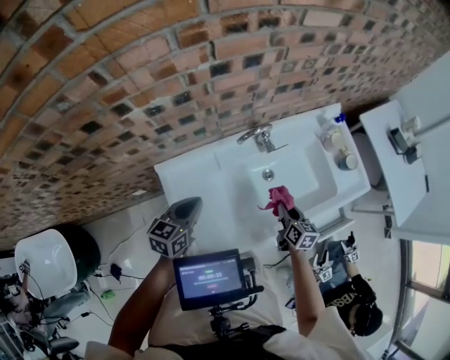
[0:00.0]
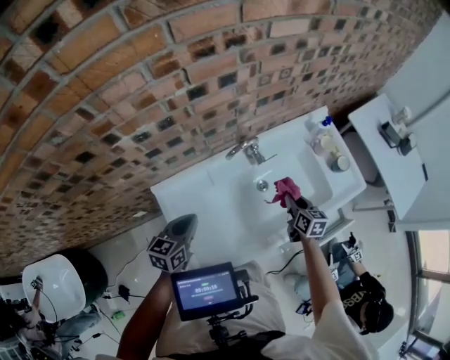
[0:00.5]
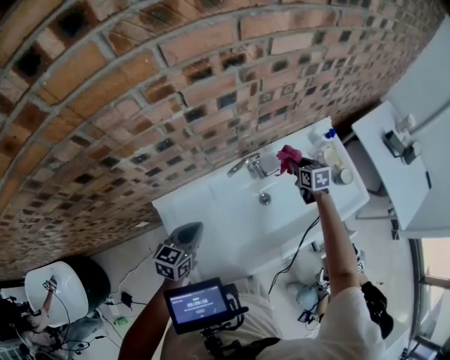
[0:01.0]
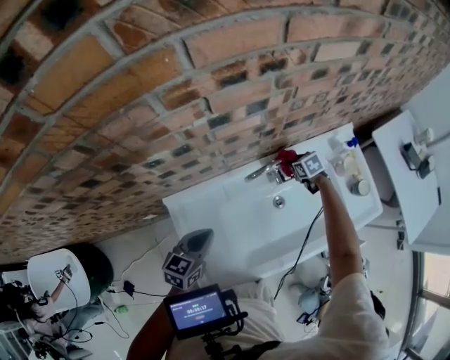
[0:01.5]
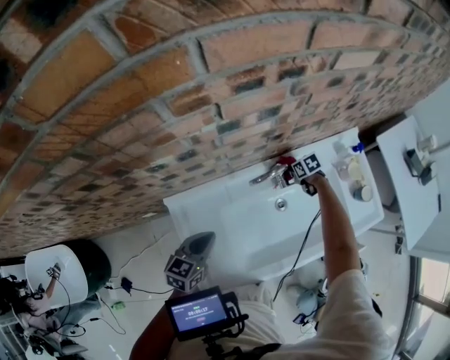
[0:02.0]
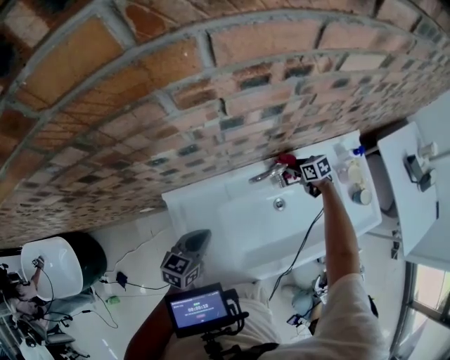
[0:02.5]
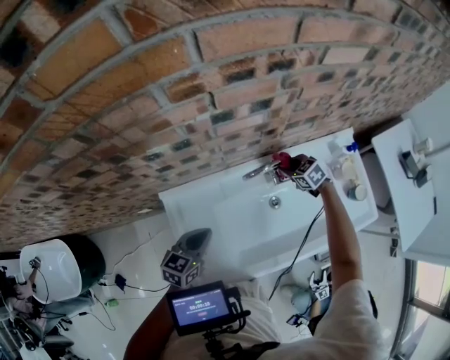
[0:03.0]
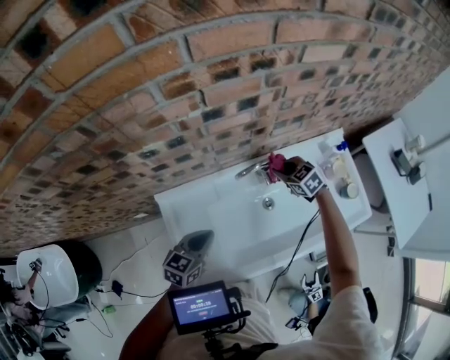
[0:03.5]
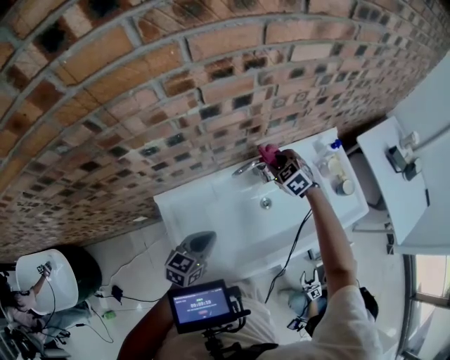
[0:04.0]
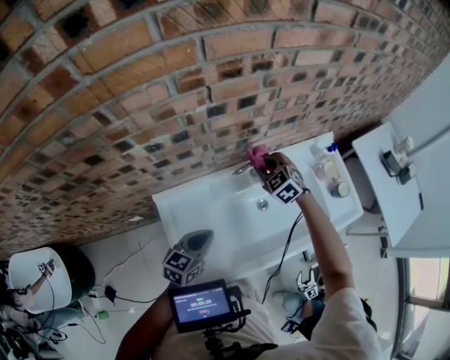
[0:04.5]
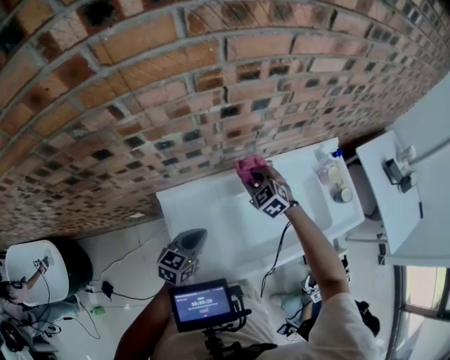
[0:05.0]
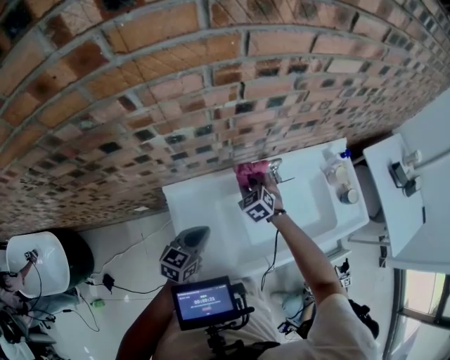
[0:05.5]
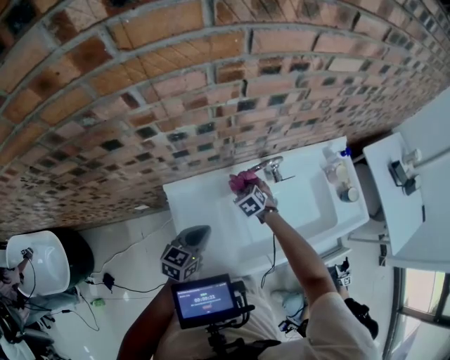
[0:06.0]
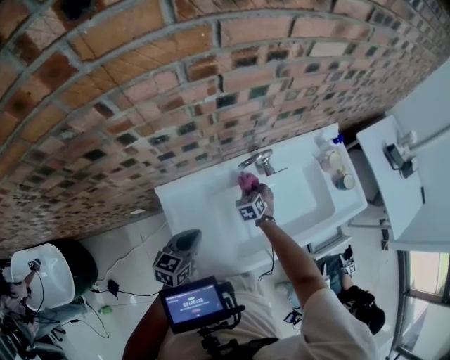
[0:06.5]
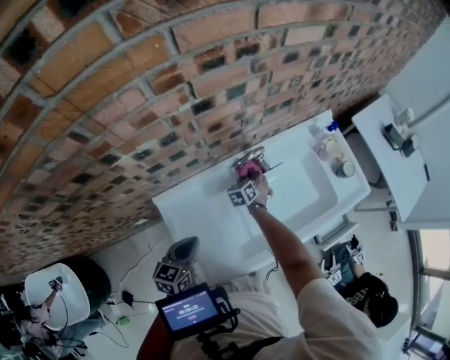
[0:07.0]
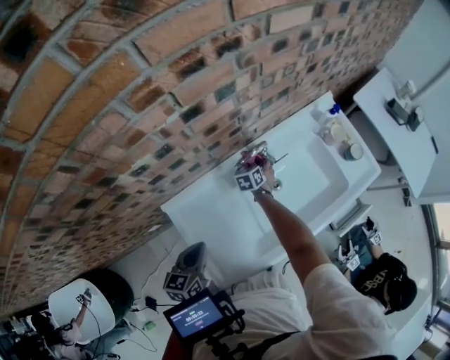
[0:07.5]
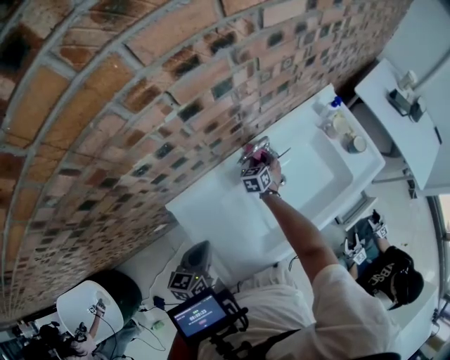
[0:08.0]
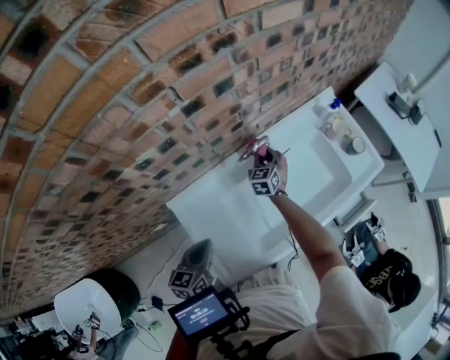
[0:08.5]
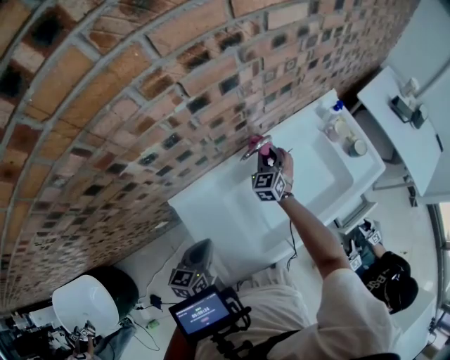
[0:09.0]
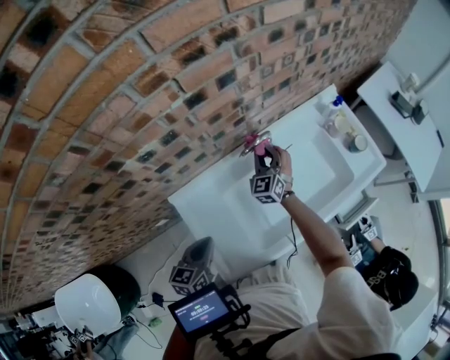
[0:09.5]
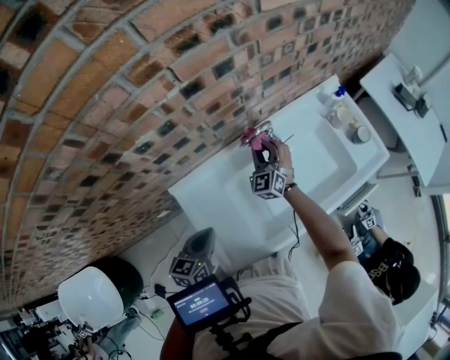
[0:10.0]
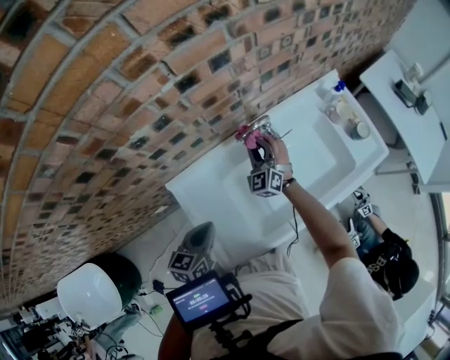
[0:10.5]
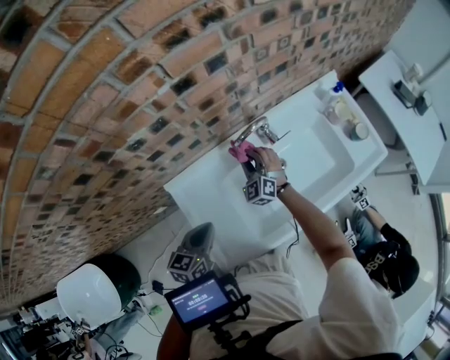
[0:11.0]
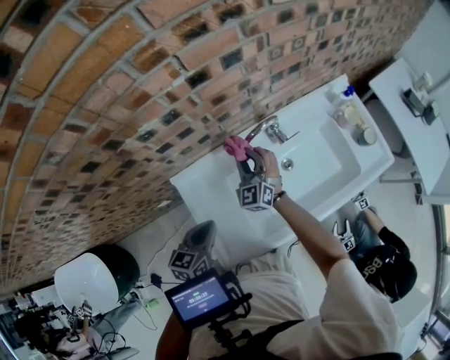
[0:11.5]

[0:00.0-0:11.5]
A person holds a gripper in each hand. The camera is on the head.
0:00.0 to 0:02.0: The right gripper ends up some 35 cm from where it was, and rotates roughly 50 degrees.
0:02.0 to 0:04.0: The right gripper travels upward by approximately 20 cm, and turns by approximately 40 degrees; the left gripper shifts by some 5 cm.
0:04.0 to 0:06.0: The right gripper is displaced to the left, downward and backward by approximately 20 cm, while the left gripper shifts approximately 5 cm to the left.
0:06.0 to 0:07.5: The right gripper moves forward, downward and to the right, approximately 15 cm, and changes its angle by some 40 degrees.
0:07.5 to 0:09.5: The right gripper travels upward by roughly 20 cm, and points its fingers roughly 30 degrees further upward.
0:09.5 to 0:11.5: The right gripper shifts roughly 10 cm to the left and backward.

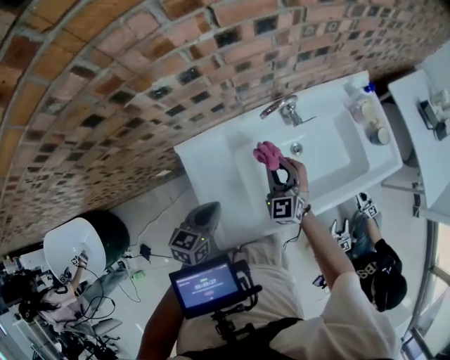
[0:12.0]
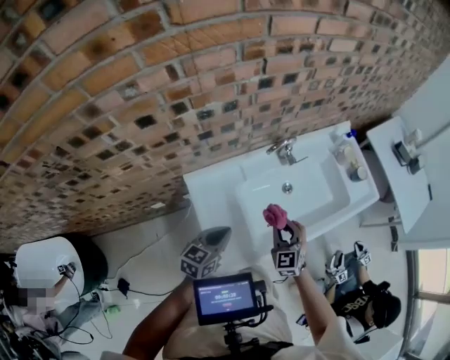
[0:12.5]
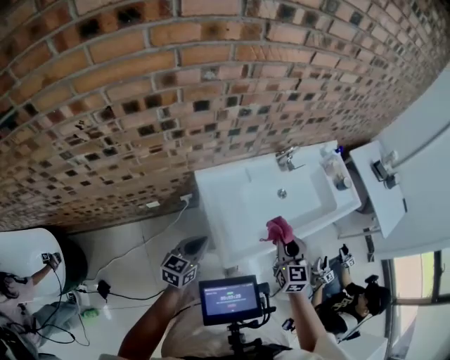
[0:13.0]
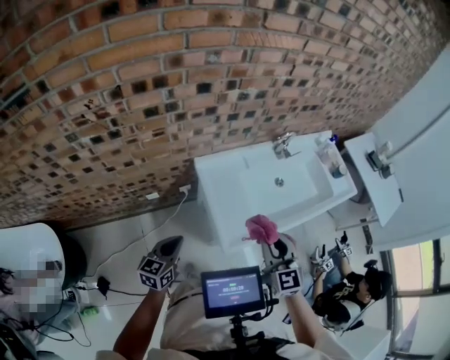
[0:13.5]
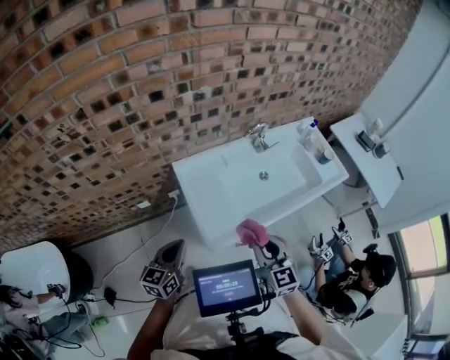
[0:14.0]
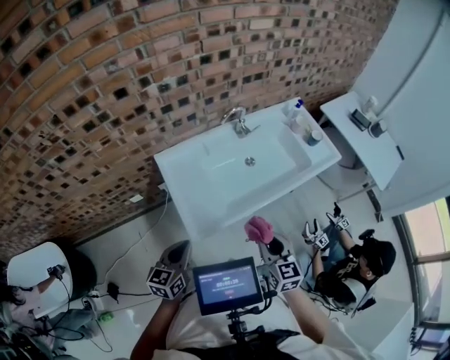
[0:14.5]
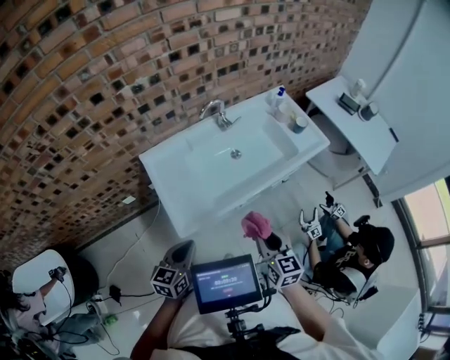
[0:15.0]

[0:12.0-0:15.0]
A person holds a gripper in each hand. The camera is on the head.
0:12.0 to 0:13.5: The right gripper is displaced backward and upward by about 40 cm, while the left gripper travels backward and to the left by some 30 cm.
0:13.5 to 0:15.0: Both grippers move to the right, some 30 cm. The right gripper turns by some 30 degrees.

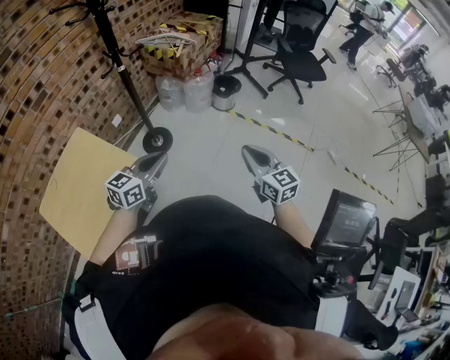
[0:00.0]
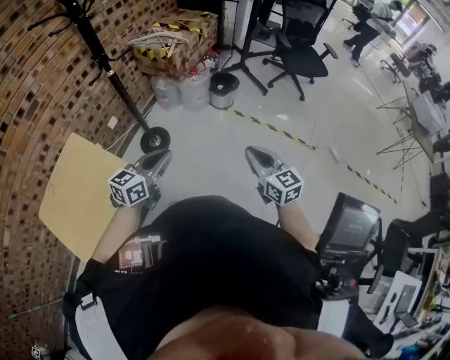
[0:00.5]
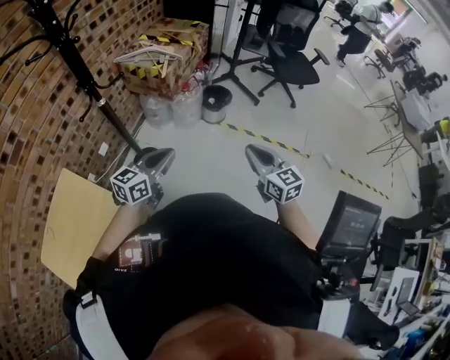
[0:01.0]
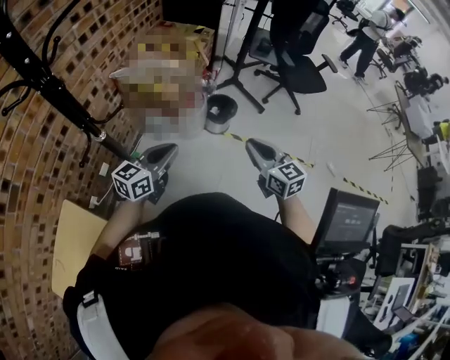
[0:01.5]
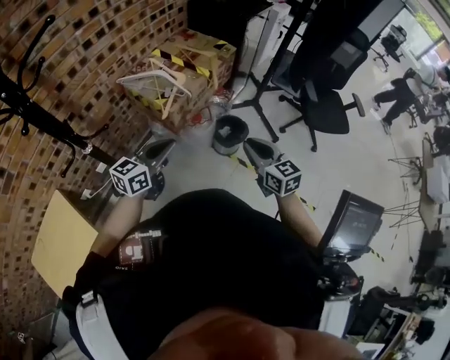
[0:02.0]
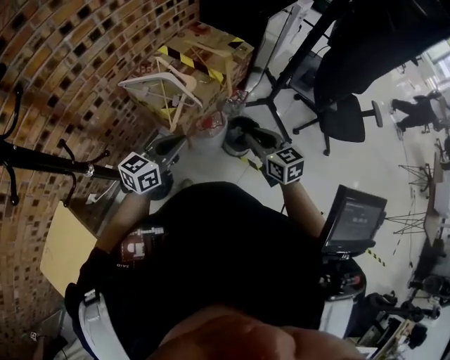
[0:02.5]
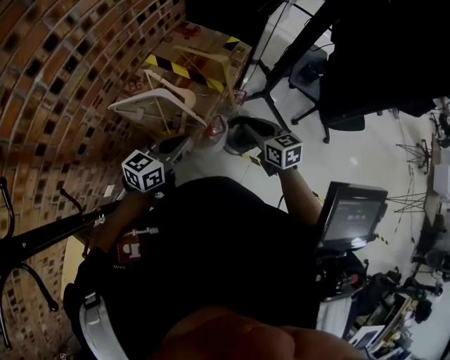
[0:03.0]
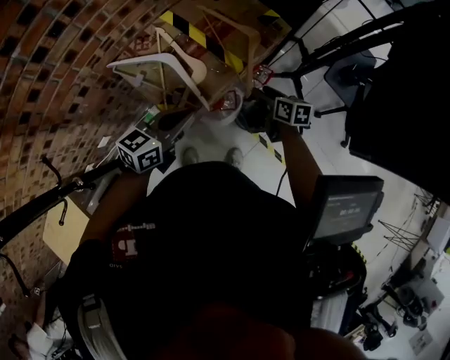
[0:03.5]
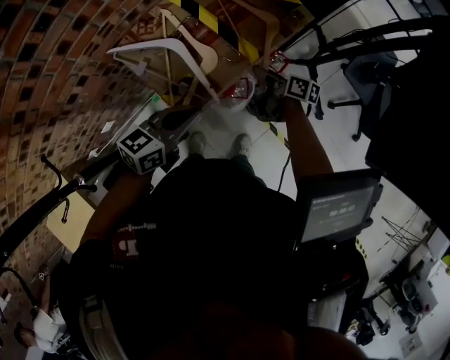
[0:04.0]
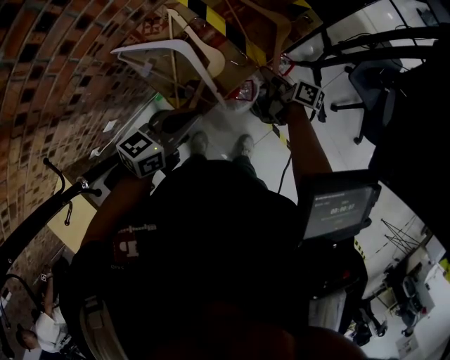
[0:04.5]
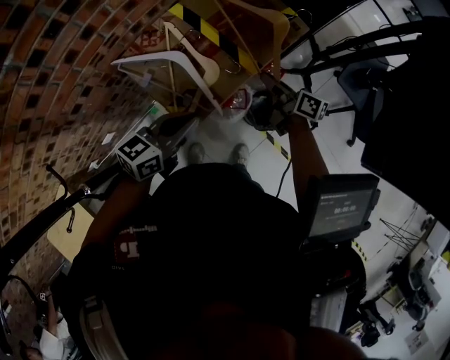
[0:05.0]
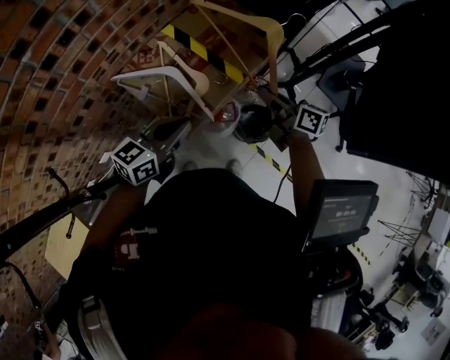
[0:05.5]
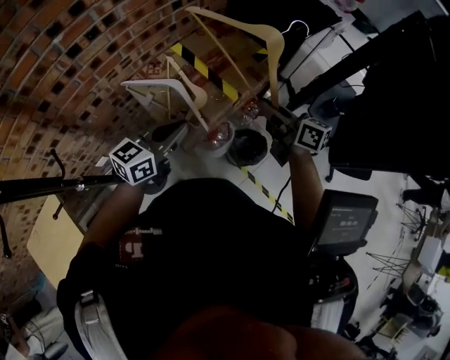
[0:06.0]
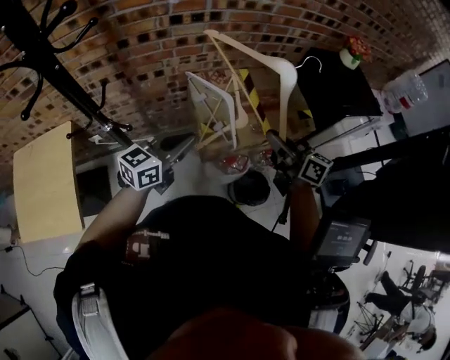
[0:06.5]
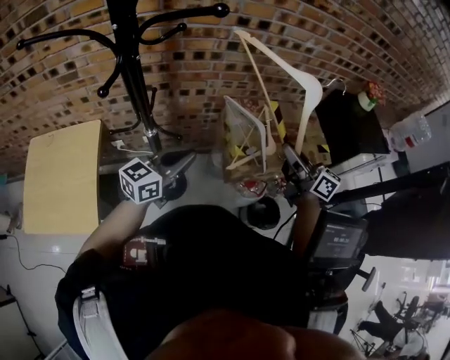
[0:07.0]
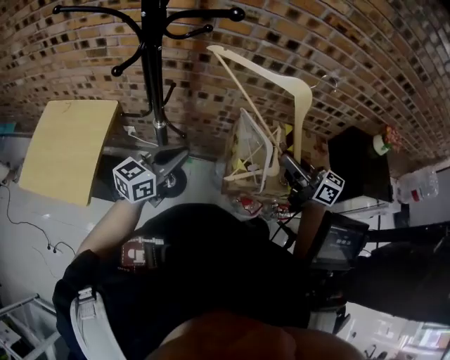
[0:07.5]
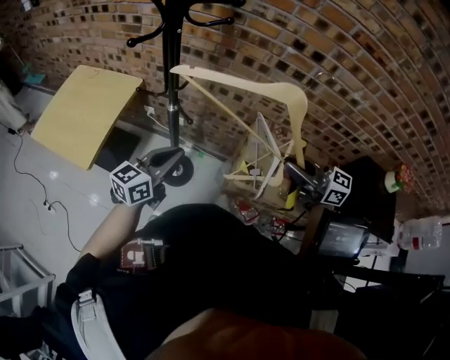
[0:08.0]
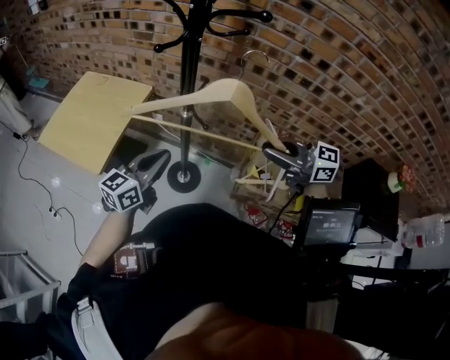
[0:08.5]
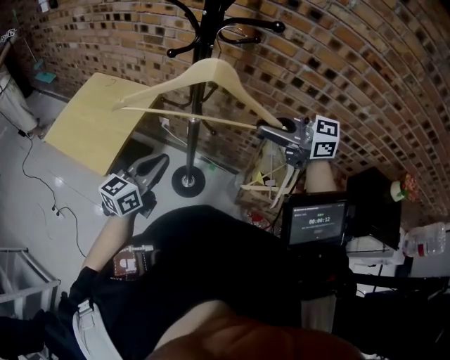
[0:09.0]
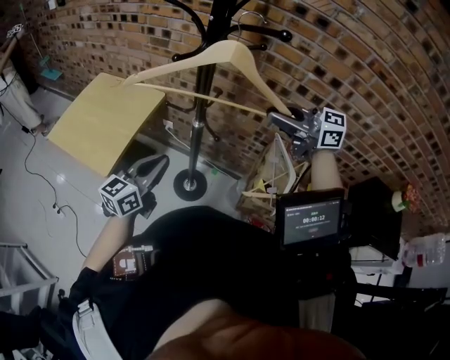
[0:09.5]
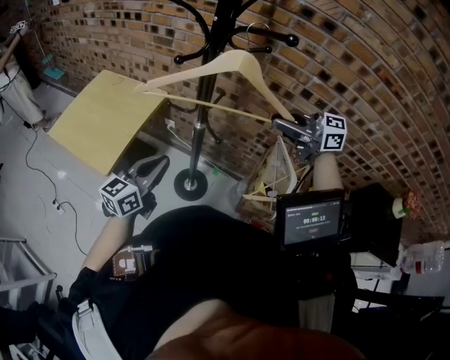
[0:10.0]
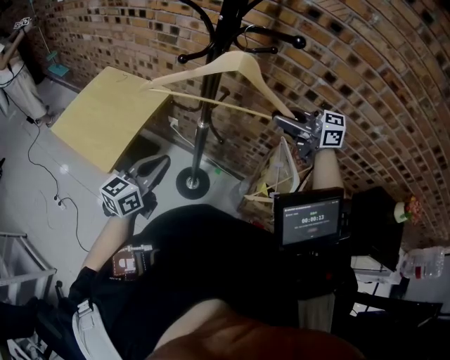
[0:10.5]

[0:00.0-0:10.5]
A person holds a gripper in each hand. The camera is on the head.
0:00.0 to 0:02.0: The two grippers travel together, forward, some 50 cm.
0:02.0 to 0:04.0: The left gripper goes roughly 30 cm forward and downward, while the right gripper is displaced forward and downward by some 50 cm, twists about 50 degrees clockwise, seen from behind, and opens up.
0:04.0 to 0:06.5: The left gripper is displaced upward by some 15 cm, and turns by about 30 degrees. Meanwhile the right gripper travels upward by approximately 30 cm, swivels roughly 40 degrees, and closes up.
0:06.5 to 0:08.5: The left gripper shifts by about 25 cm, and turns by roughly 50 degrees. Meanwhile the right gripper shifts by about 25 cm, and turns by some 70 degrees.
0:08.5 to 0:10.5: The right gripper shifts roughly 15 cm forward.

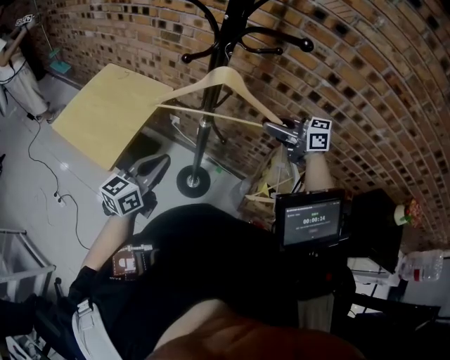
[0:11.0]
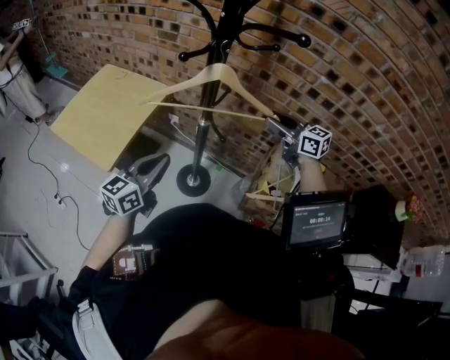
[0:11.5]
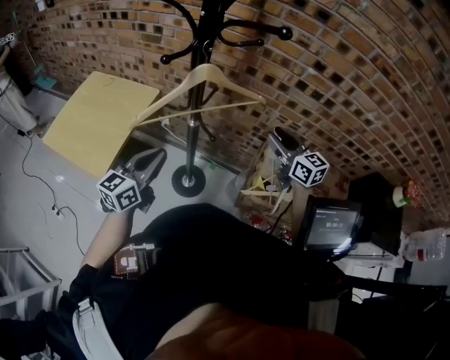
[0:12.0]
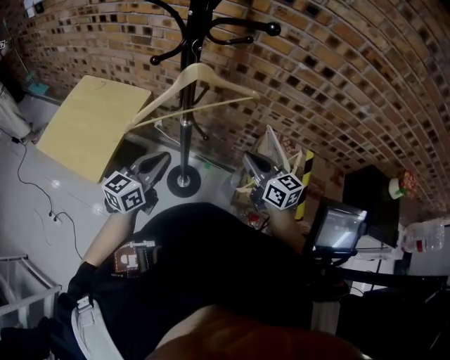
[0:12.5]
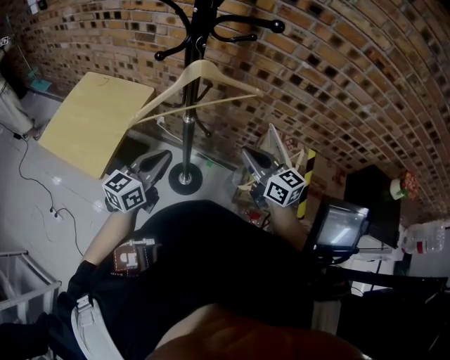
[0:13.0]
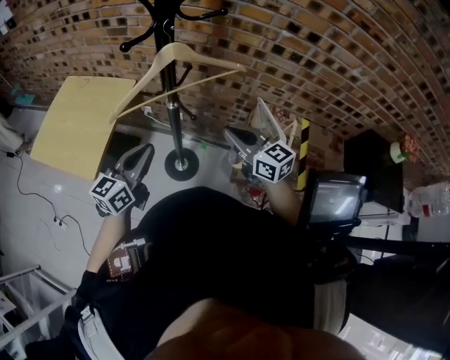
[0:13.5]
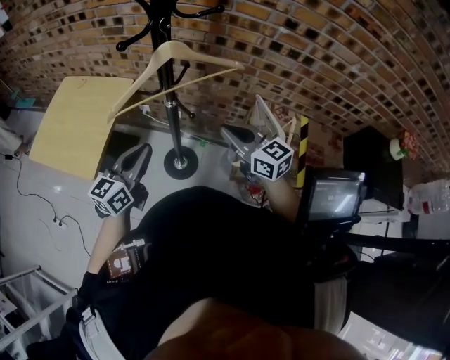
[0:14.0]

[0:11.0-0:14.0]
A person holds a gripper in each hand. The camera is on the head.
0:11.0 to 0:12.5: The left gripper changes place by some 5 cm. The right gripper shifts by roughly 10 cm, turns by some 40 degrees, and opens and closes again.
0:12.5 to 0:14.0: The grippers stay close to where they were, moving slightly.
